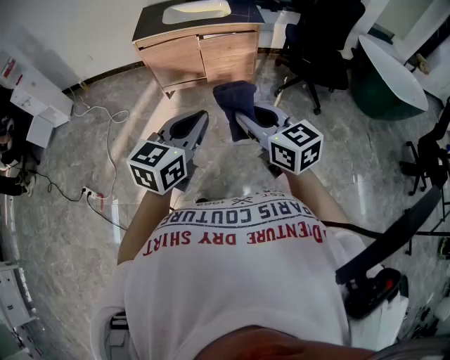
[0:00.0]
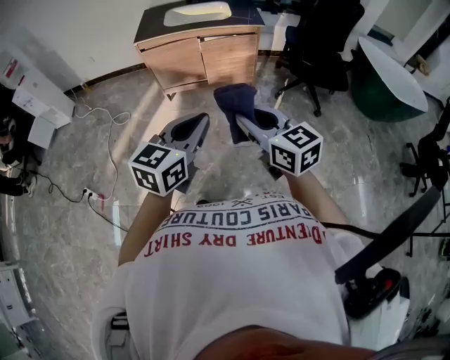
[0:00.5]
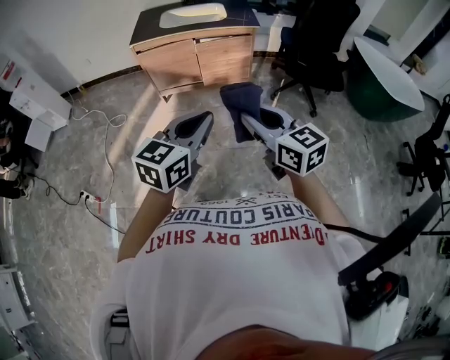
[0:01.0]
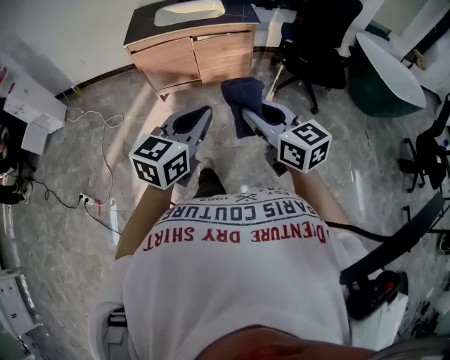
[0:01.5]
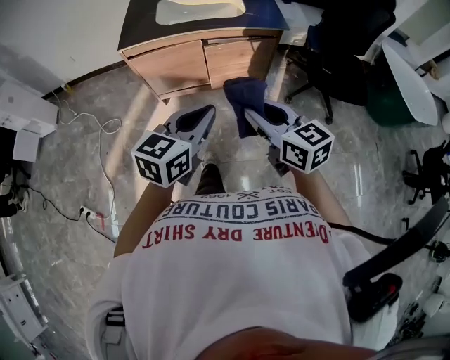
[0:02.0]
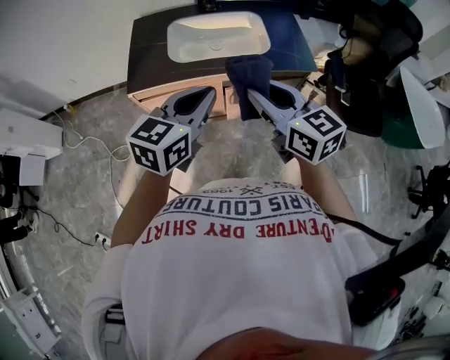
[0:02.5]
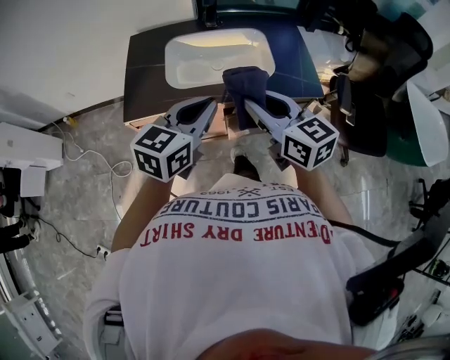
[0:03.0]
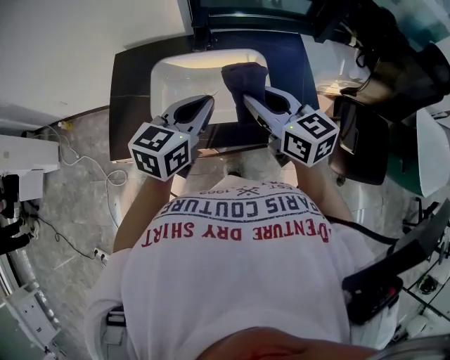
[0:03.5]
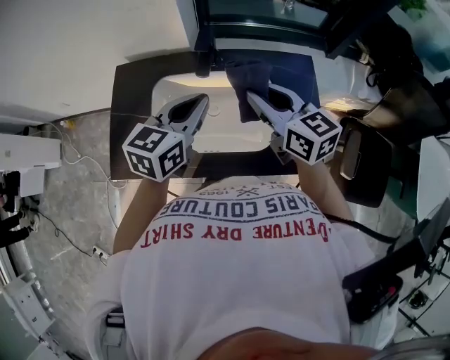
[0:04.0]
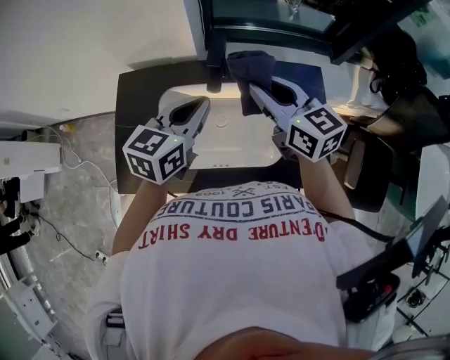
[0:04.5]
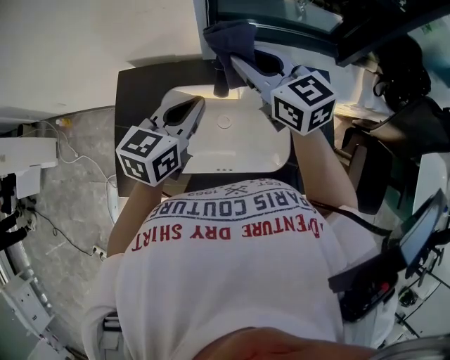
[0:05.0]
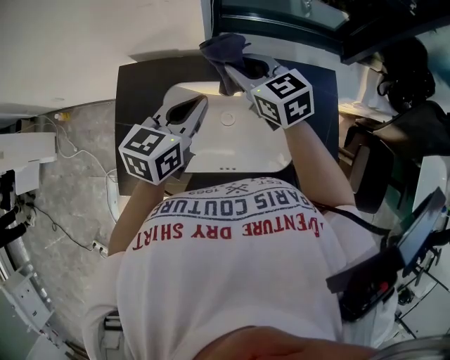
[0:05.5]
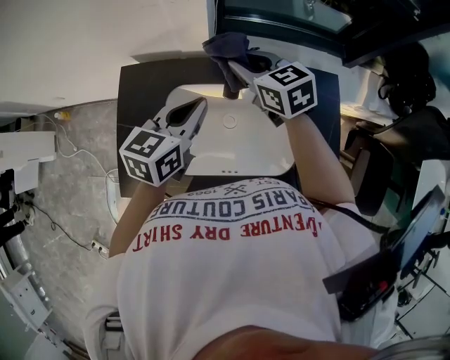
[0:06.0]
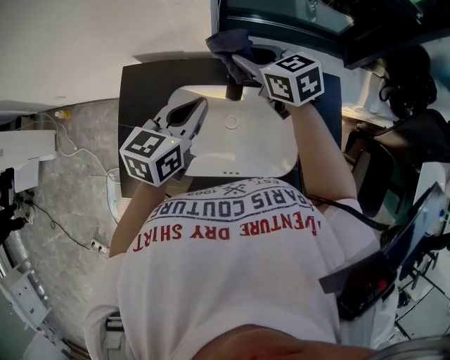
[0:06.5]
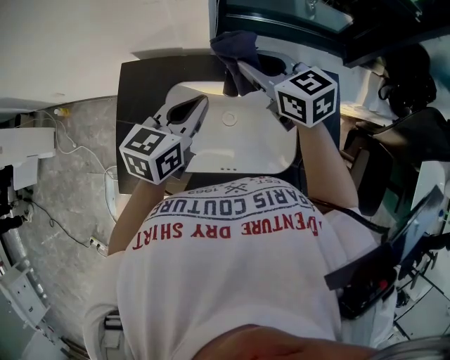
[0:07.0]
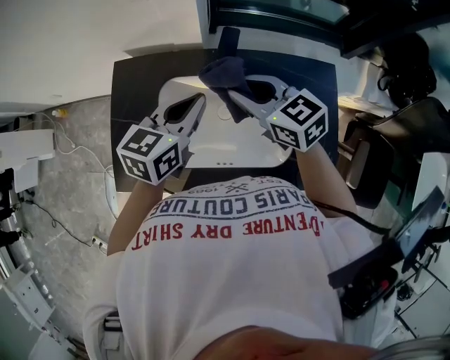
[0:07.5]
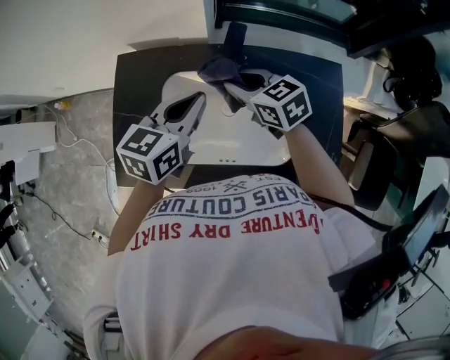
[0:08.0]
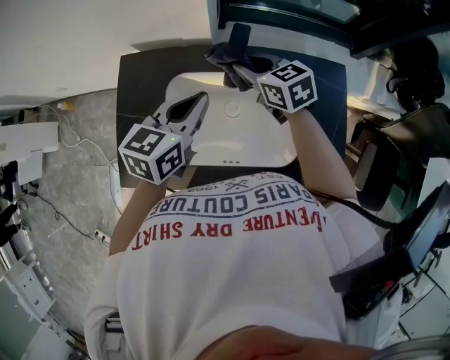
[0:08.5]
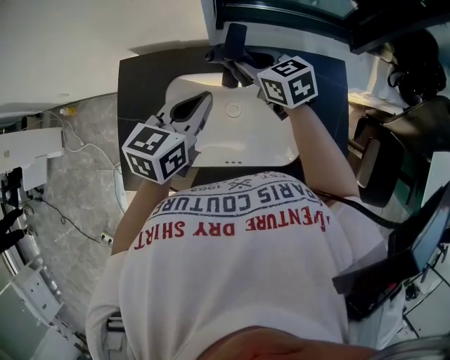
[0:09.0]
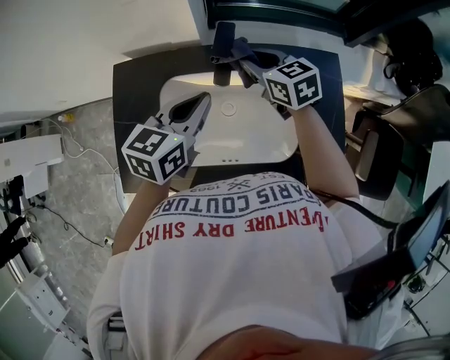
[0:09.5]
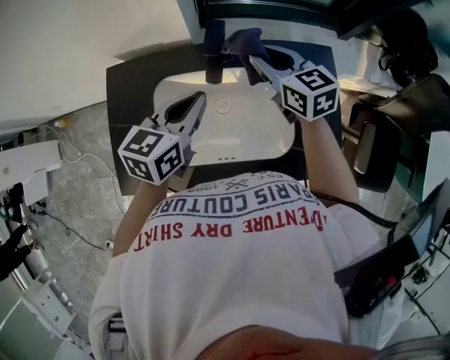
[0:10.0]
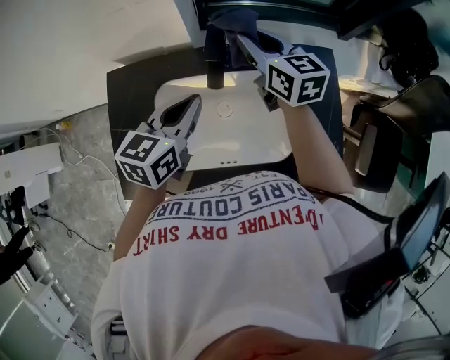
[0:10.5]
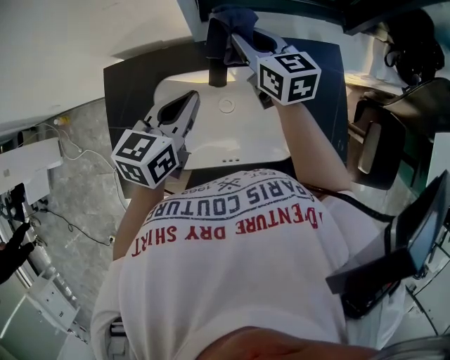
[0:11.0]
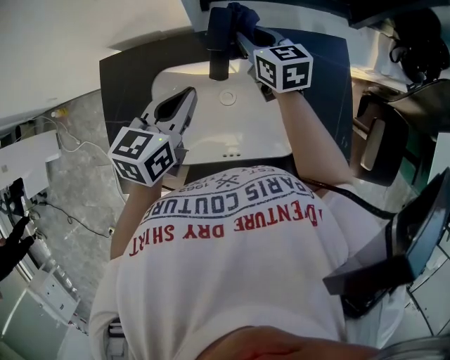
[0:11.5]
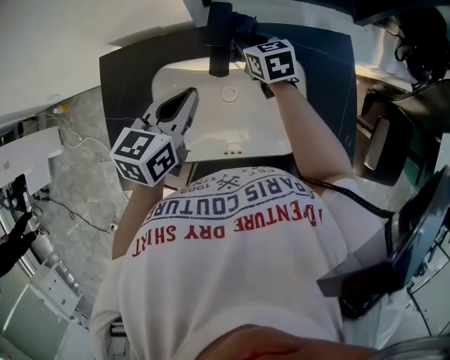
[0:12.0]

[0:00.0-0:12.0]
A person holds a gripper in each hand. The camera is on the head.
0:00.0 to 0:02.0: Both grippers move forward, approximately 30 cm.
0:02.0 to 0:04.0: Both grippers are carried forward, roughly 70 cm.
0:04.0 to 0:06.0: The right gripper shifts approximately 25 cm forward and to the left. Meanwhile the left gripper moves forward and to the left, some 15 cm.
0:06.0 to 0:08.0: The right gripper moves backward and downward, approximately 10 cm.
0:08.0 to 0:10.0: The right gripper travels to the right by roughly 10 cm, and changes its angle by about 20 degrees.
0:10.0 to 0:12.0: The left gripper moves about 5 cm. Meanwhile the right gripper shifts about 20 cm downward and forward.

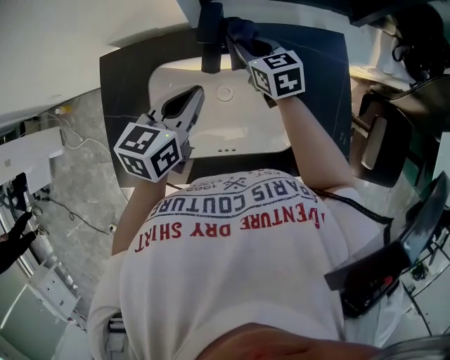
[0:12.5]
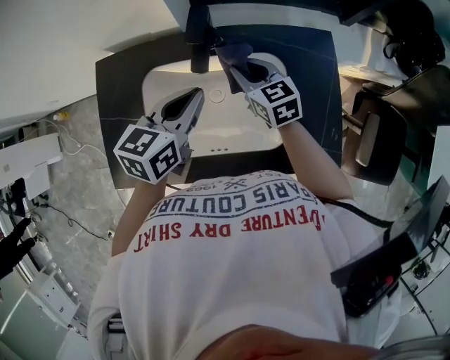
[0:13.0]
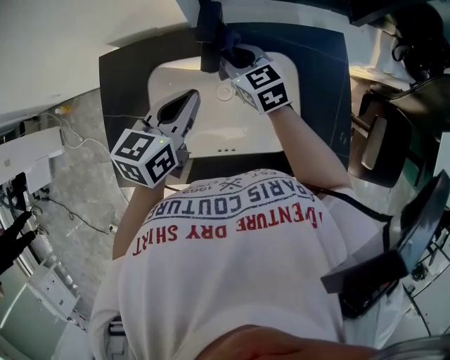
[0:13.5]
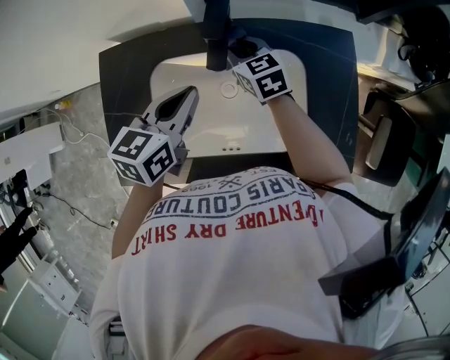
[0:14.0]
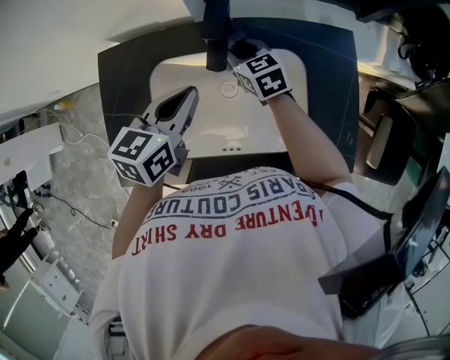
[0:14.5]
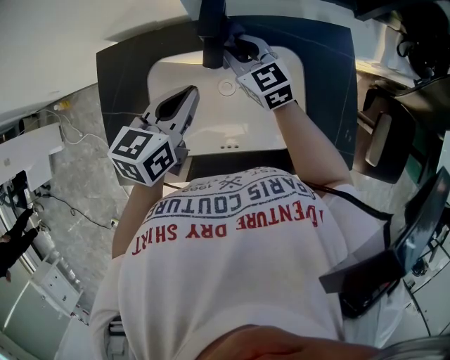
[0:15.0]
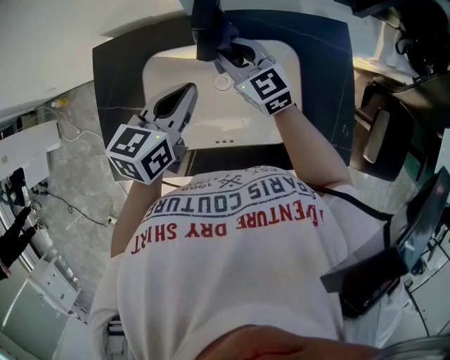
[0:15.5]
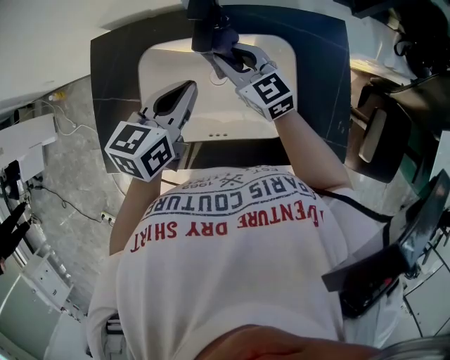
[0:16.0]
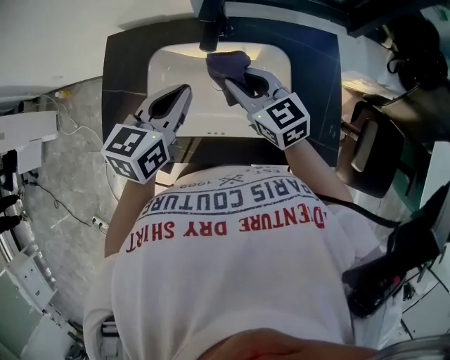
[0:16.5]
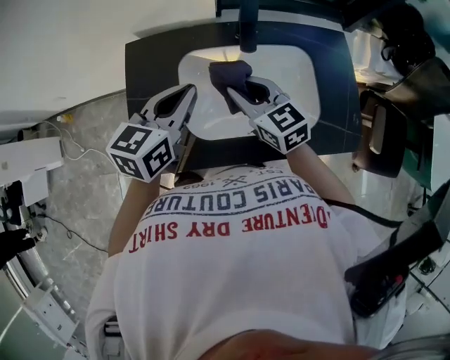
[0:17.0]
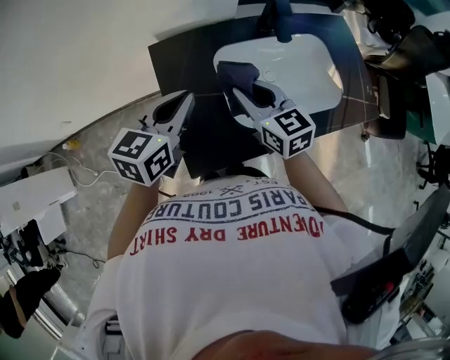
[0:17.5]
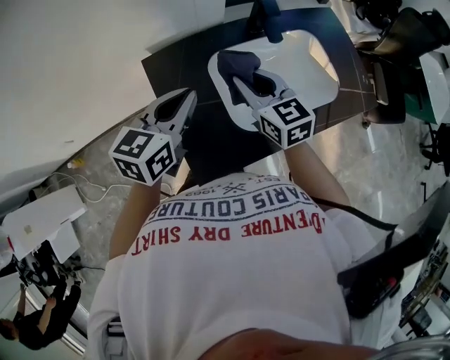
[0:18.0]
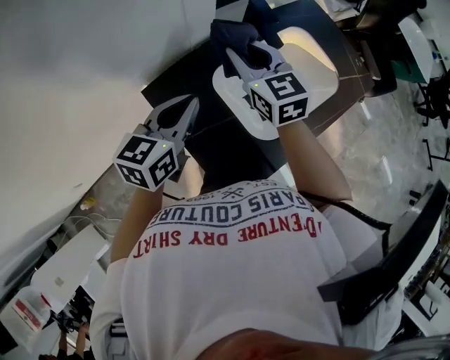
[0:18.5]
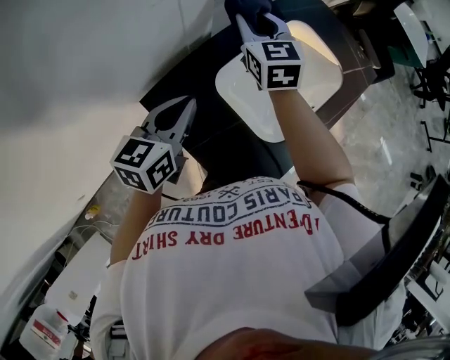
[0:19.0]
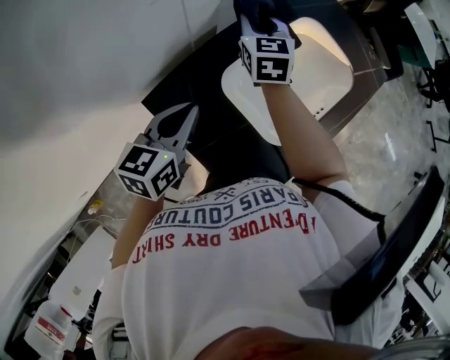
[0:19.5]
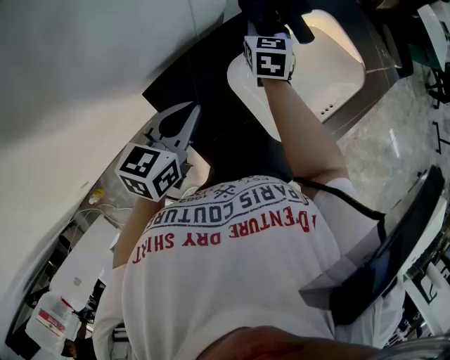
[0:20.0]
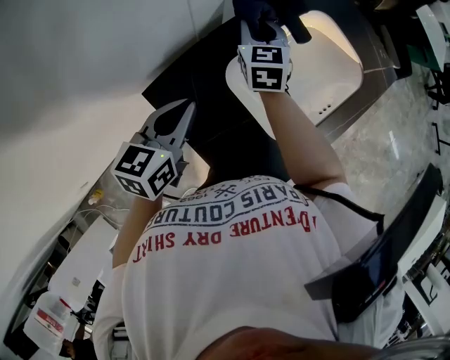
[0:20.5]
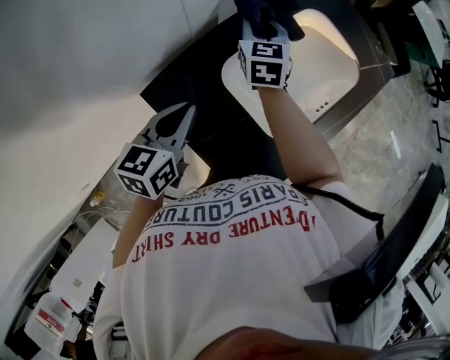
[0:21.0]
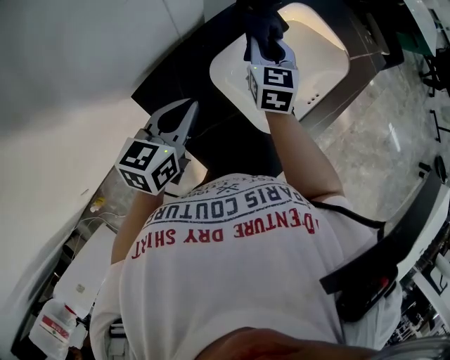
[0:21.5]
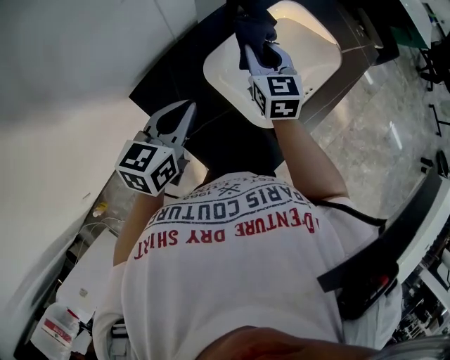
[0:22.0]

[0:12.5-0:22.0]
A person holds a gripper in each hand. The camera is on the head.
0:12.5 to 0:14.5: The right gripper moves roughly 5 cm.
0:14.5 to 0:16.5: The right gripper goes some 20 cm backward and upward. Meanwhile the left gripper heads backward, covering about 10 cm.
0:16.5 to 0:18.0: The right gripper moves roughly 25 cm, and turns by approximately 30 degrees. Meanwhile the left gripper shifts by about 25 cm, and swivels roughly 30 degrees.
0:18.0 to 0:20.0: The left gripper moves approximately 15 cm; the right gripper changes place by about 25 cm, and changes its angle by some 50 degrees.
0:20.0 to 0:22.0: The right gripper moves backward, to the right and upward, some 15 cm; the left gripper moves to the right, approximately 5 cm.

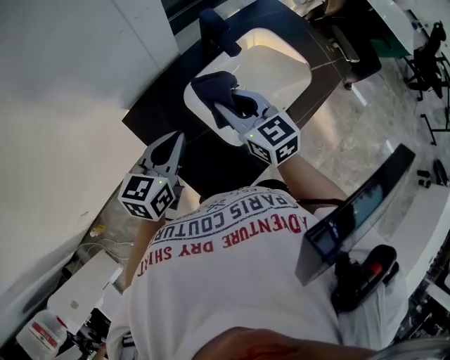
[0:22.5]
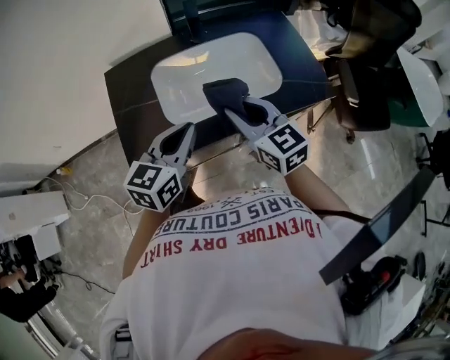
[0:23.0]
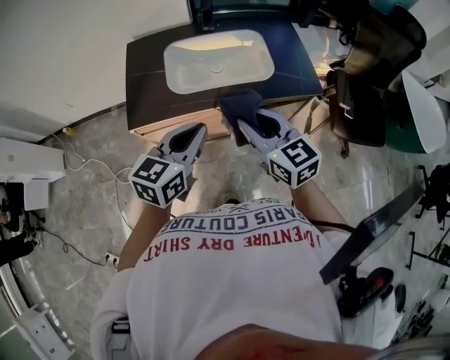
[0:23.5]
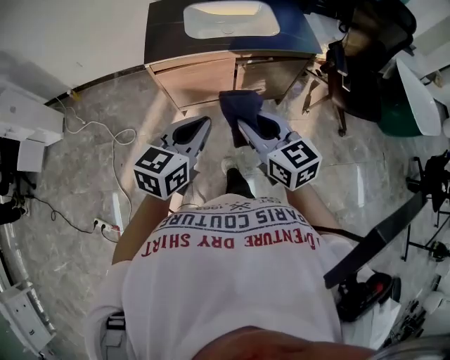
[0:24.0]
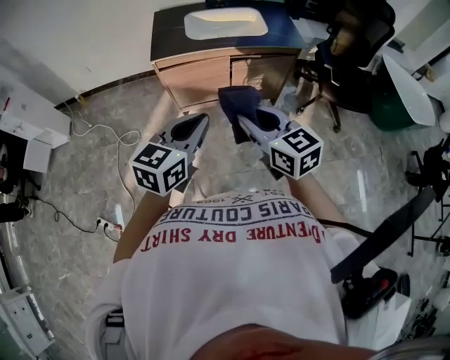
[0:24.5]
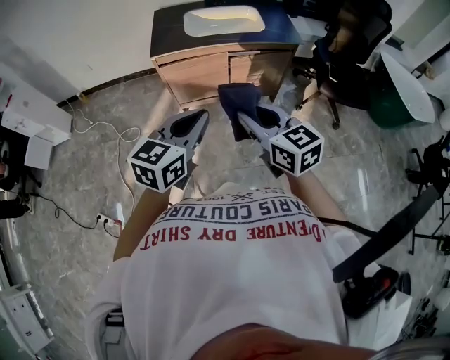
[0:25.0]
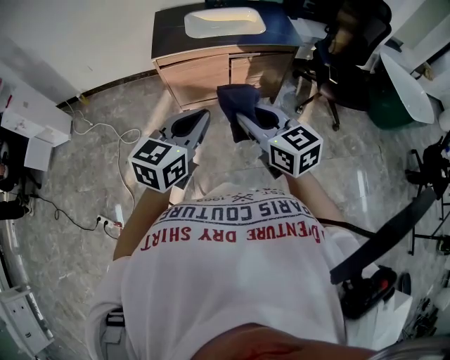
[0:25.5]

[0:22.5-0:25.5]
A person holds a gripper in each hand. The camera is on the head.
0:22.5 to 0:24.0: Both grippers are carried some 60 cm. The right gripper turns by roughly 30 degrees. Meanwhile the left gripper changes its angle by about 30 degrees.
0:24.0 to 0:25.5: The two grippers go some 15 cm backward and upward.

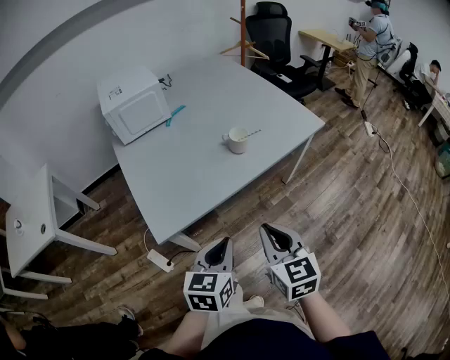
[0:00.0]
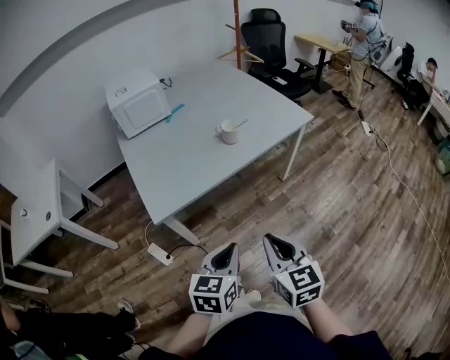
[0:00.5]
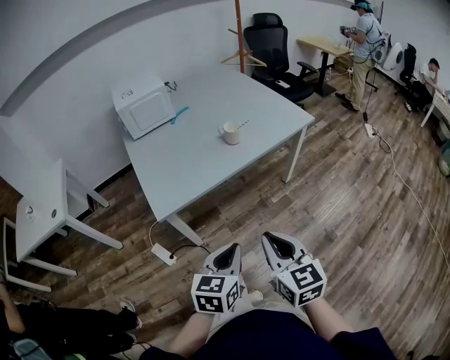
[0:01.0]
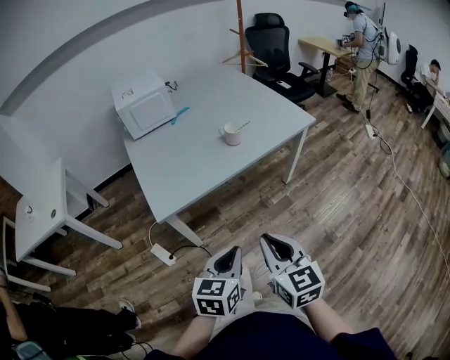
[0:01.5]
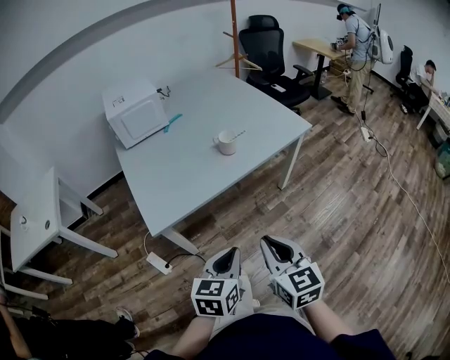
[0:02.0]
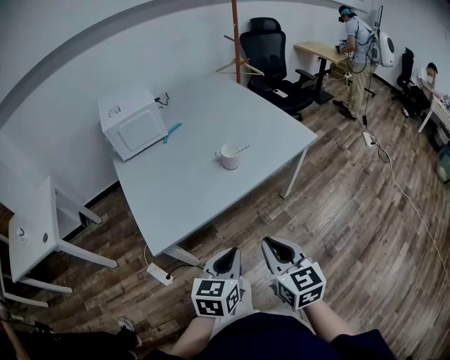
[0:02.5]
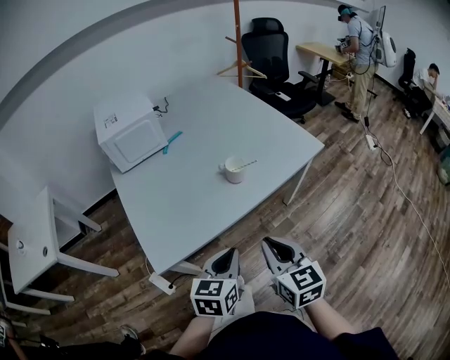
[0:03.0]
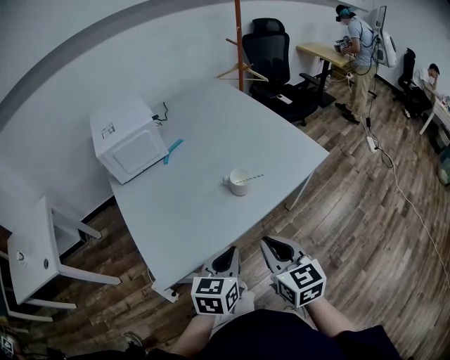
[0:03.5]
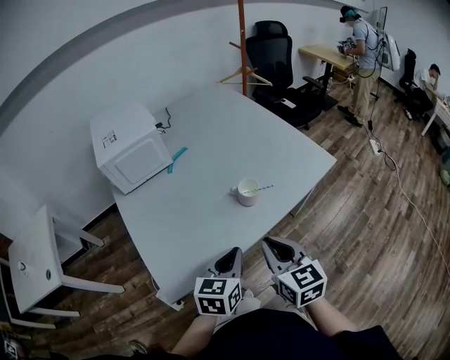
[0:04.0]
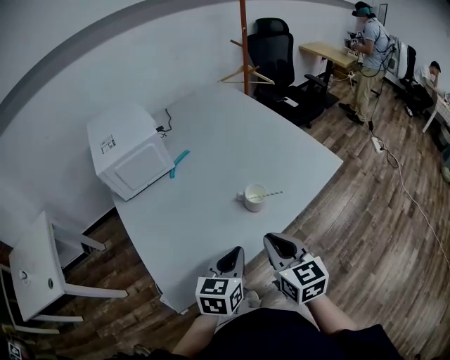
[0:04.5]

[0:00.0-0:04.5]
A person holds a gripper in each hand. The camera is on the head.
0:00.0 to 0:02.0: The two grippers go some 10 cm backward and to the right.
0:02.0 to 0:04.5: Both grippers travel together forward, roughly 30 cm.
